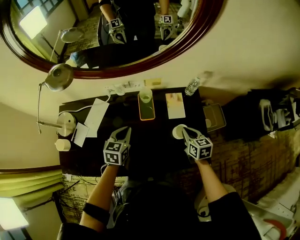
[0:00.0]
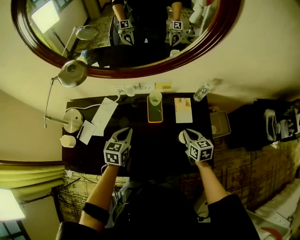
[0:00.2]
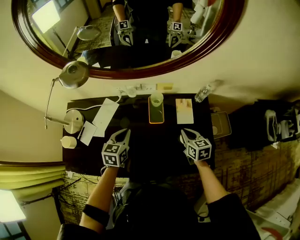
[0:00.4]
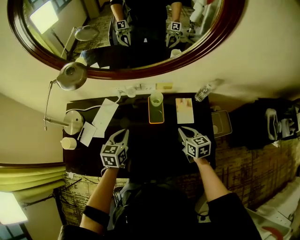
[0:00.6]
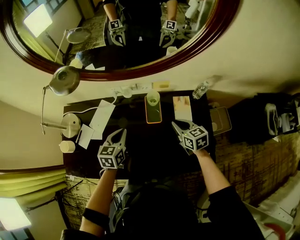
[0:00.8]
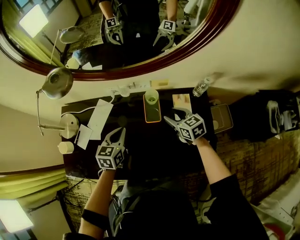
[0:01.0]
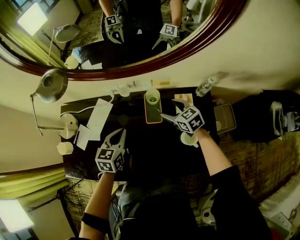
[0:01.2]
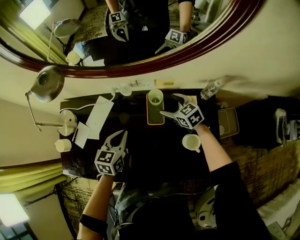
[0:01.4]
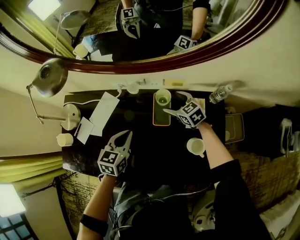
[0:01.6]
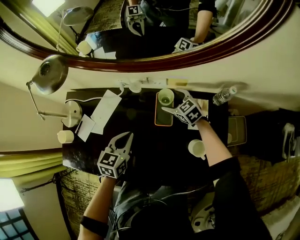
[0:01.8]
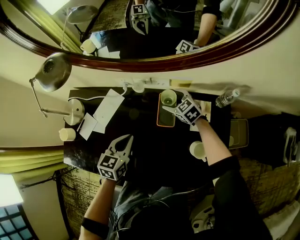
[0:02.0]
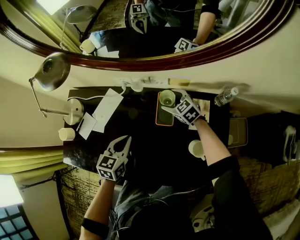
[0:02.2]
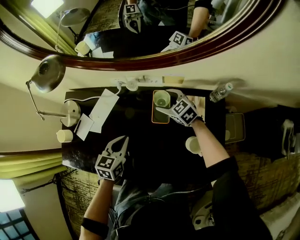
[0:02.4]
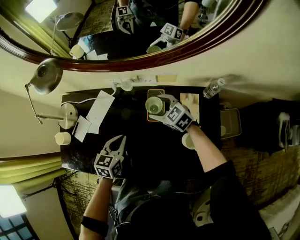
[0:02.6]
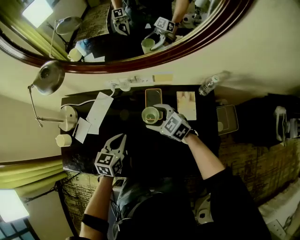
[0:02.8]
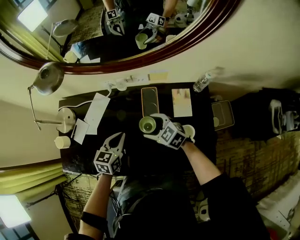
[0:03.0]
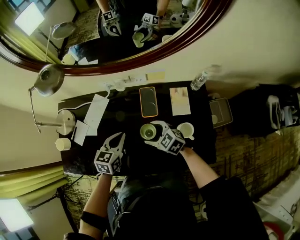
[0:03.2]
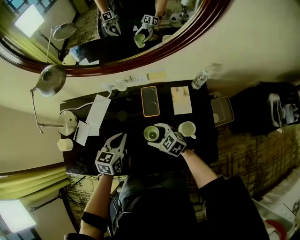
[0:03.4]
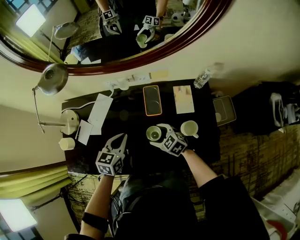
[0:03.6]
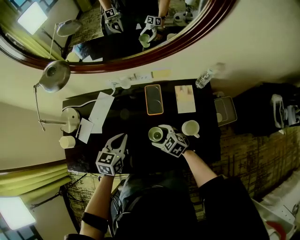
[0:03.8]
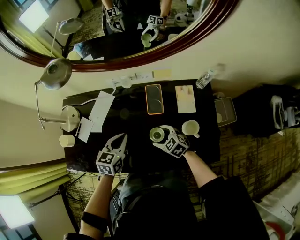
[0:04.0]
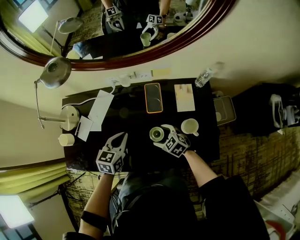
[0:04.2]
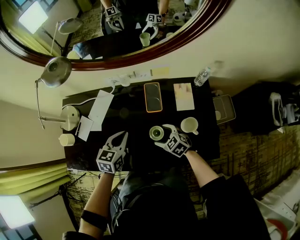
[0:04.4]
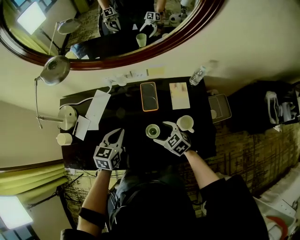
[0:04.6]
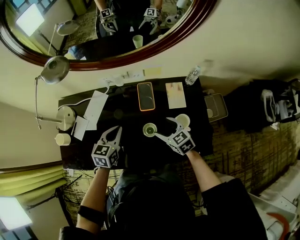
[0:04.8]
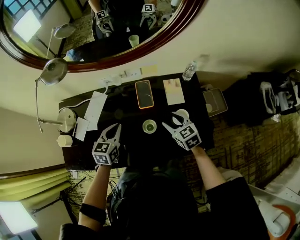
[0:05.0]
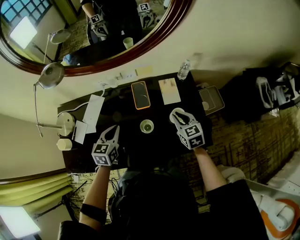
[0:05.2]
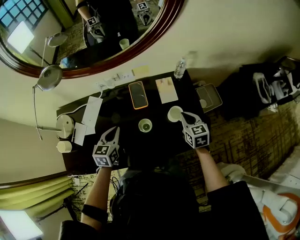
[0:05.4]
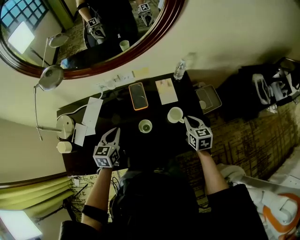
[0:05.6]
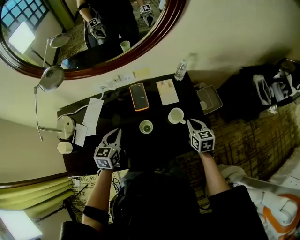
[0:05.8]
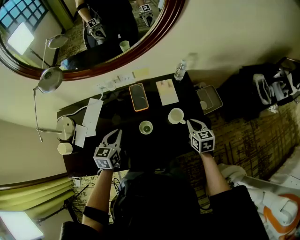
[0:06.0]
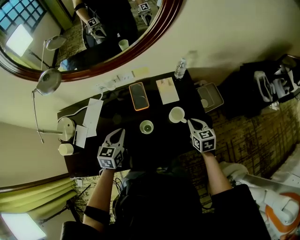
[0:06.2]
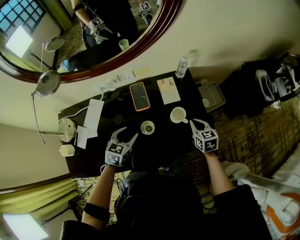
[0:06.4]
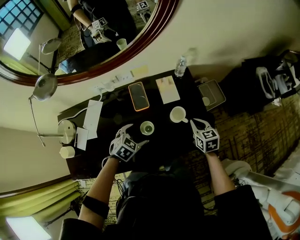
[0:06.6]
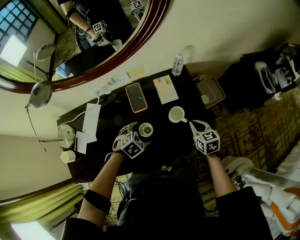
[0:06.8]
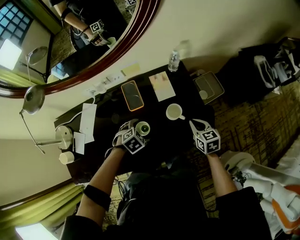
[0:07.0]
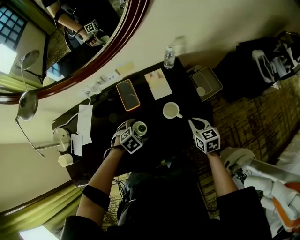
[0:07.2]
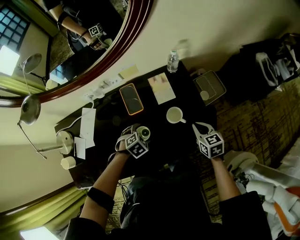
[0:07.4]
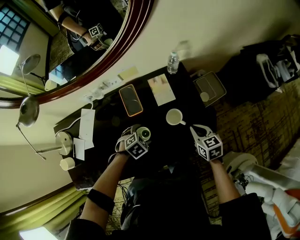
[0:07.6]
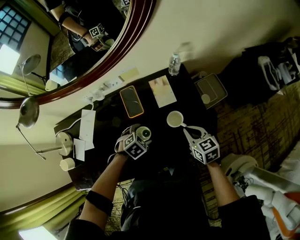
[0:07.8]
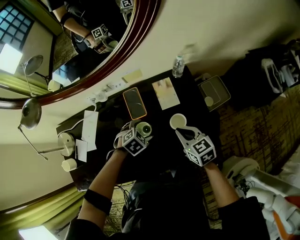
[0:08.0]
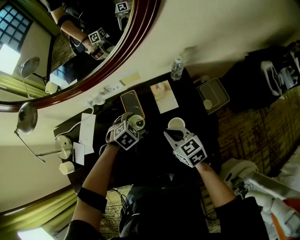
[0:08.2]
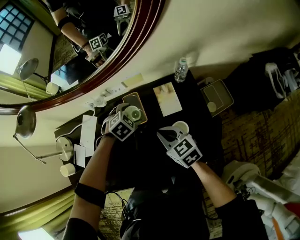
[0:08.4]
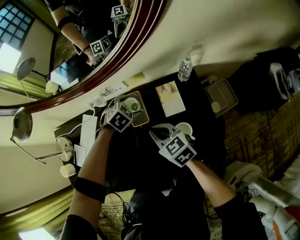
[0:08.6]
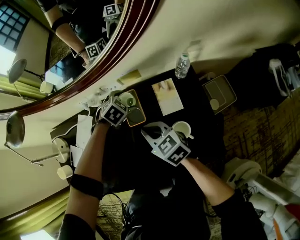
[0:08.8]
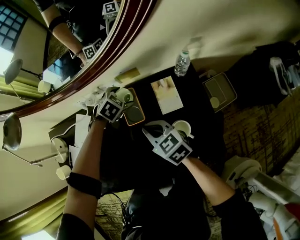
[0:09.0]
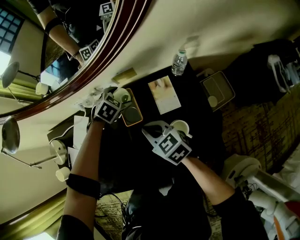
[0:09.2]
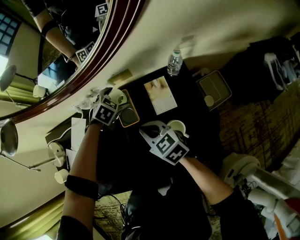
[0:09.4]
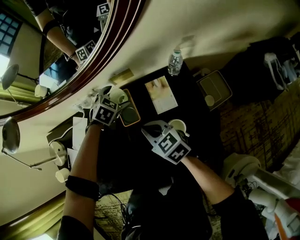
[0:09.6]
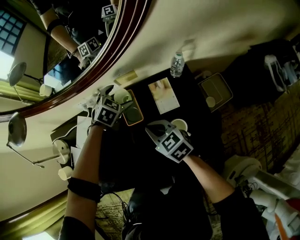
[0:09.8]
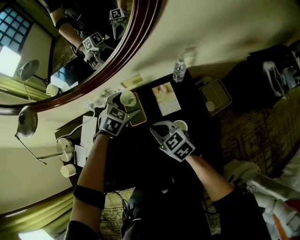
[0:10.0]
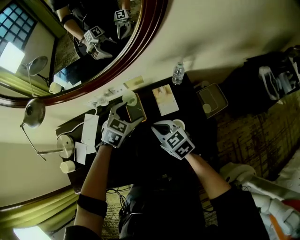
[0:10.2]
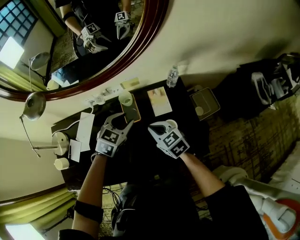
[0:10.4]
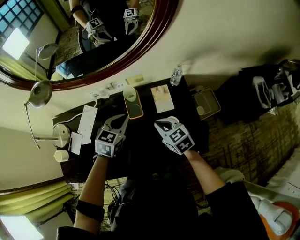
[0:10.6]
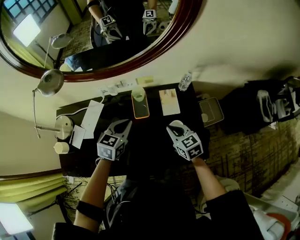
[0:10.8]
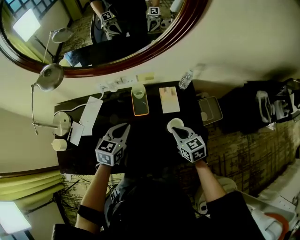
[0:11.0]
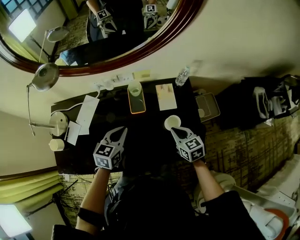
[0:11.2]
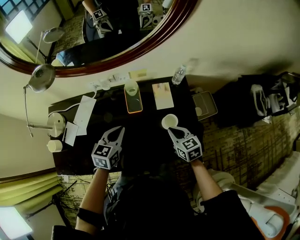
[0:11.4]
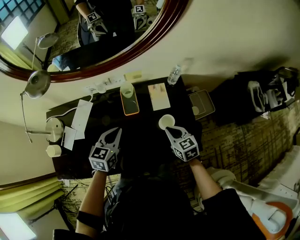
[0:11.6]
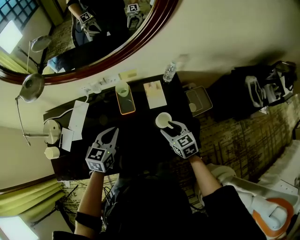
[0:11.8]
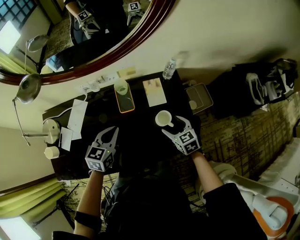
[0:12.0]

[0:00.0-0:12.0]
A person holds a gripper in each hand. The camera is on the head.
0:00.0 to 0:01.6: The left gripper shifts by about 5 cm. Meanwhile the right gripper moves forward and to the left, roughly 25 cm, rotates approximately 40 degrees, and opens up.
0:01.6 to 0:03.0: The right gripper heads backward and to the left, covering some 20 cm.
0:03.0 to 0:04.4: The right gripper shifts approximately 15 cm downward and backward.
0:04.4 to 0:06.0: The right gripper shifts by some 25 cm, changes its angle by about 50 degrees, and closes its fingers.
0:06.0 to 0:07.6: The left gripper is displaced downward and to the right by approximately 20 cm, angles its fingers downward, by about 40 degrees, and opens up.
0:07.6 to 0:09.0: The left gripper changes place by approximately 25 cm, while the right gripper changes place by roughly 25 cm, and turns by approximately 30 degrees.
0:09.0 to 0:10.4: The left gripper shifts roughly 25 cm upward and backward, swivels some 30 degrees, and closes, while the right gripper goes roughly 5 cm upward.
0:10.4 to 0:12.0: The left gripper moves backward and to the left, roughly 10 cm, and changes its angle by about 20 degrees. The right gripper moves to the right and downward, approximately 15 cm, and opens.

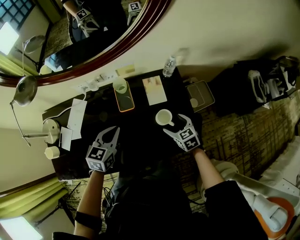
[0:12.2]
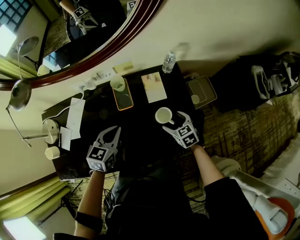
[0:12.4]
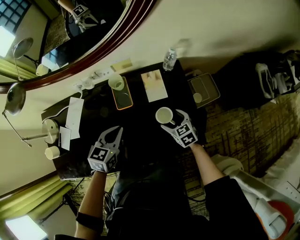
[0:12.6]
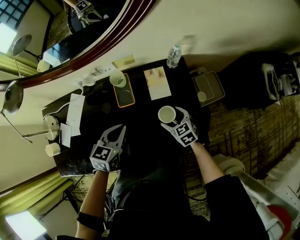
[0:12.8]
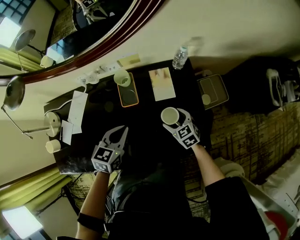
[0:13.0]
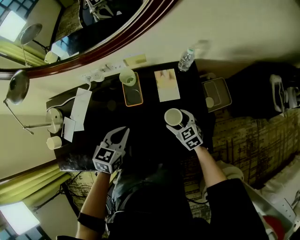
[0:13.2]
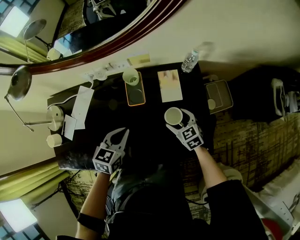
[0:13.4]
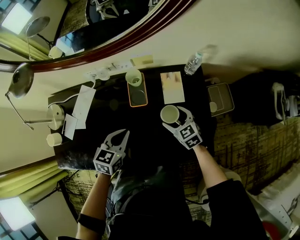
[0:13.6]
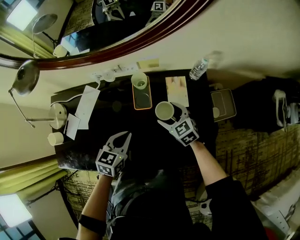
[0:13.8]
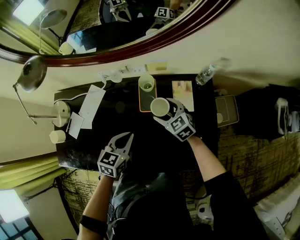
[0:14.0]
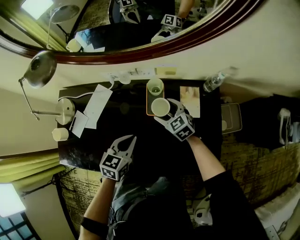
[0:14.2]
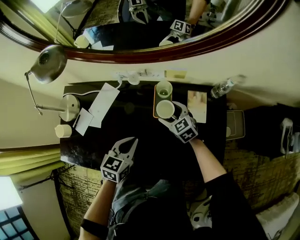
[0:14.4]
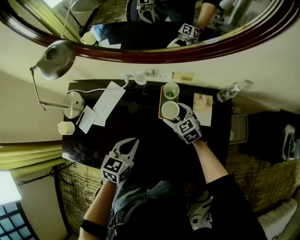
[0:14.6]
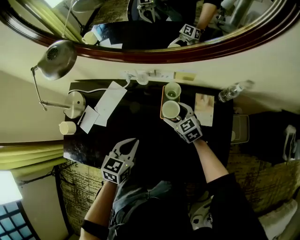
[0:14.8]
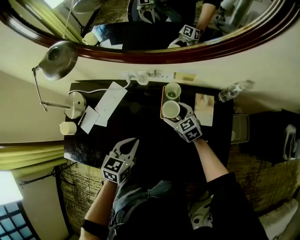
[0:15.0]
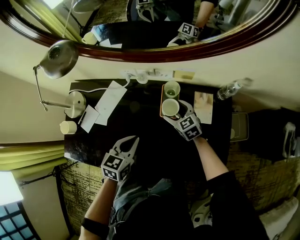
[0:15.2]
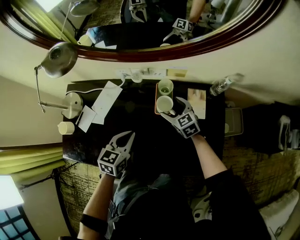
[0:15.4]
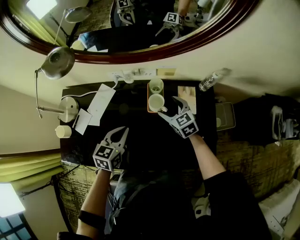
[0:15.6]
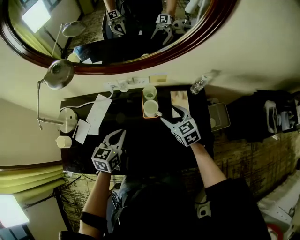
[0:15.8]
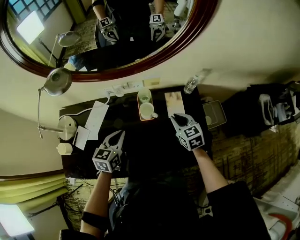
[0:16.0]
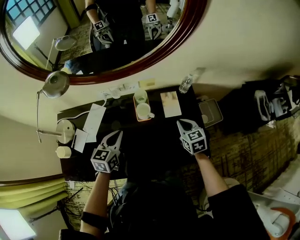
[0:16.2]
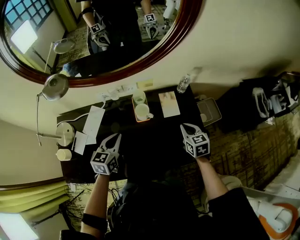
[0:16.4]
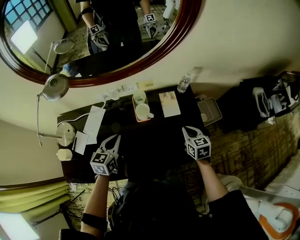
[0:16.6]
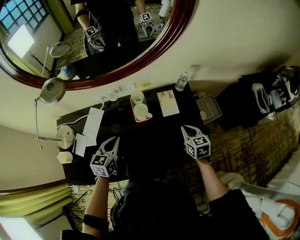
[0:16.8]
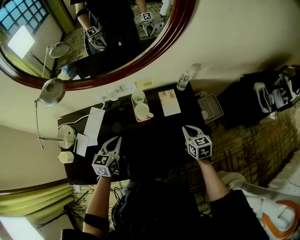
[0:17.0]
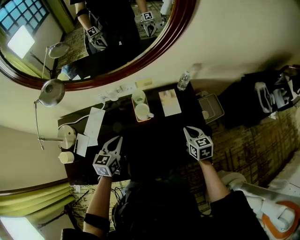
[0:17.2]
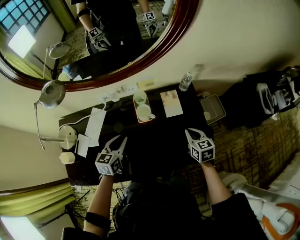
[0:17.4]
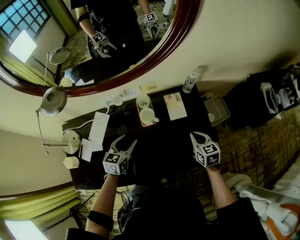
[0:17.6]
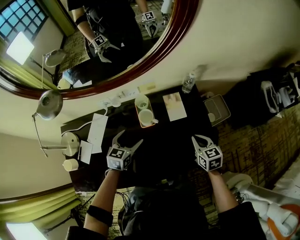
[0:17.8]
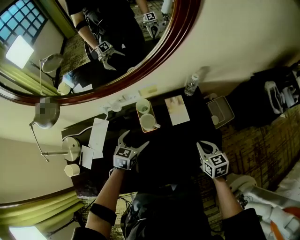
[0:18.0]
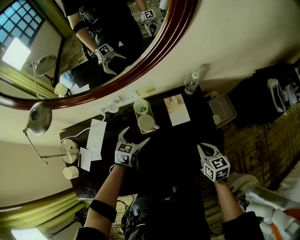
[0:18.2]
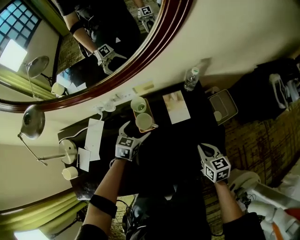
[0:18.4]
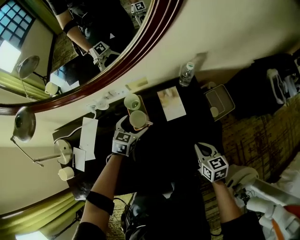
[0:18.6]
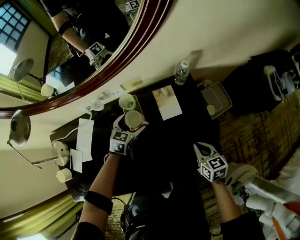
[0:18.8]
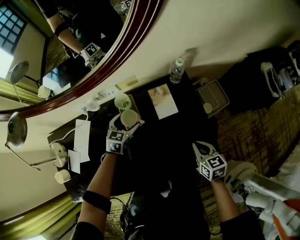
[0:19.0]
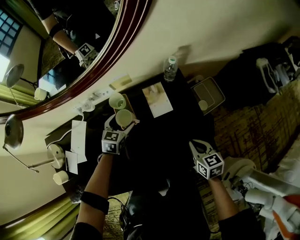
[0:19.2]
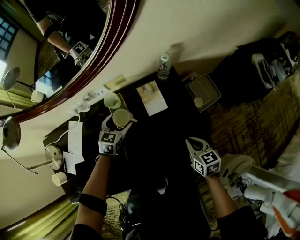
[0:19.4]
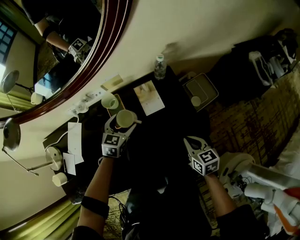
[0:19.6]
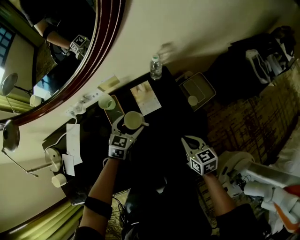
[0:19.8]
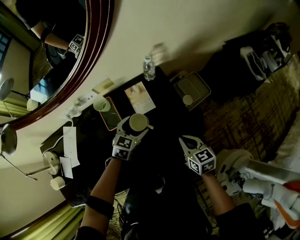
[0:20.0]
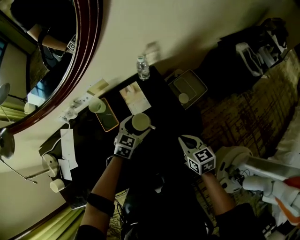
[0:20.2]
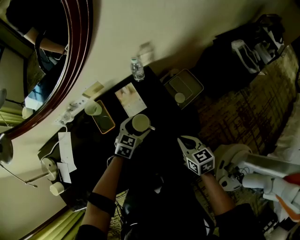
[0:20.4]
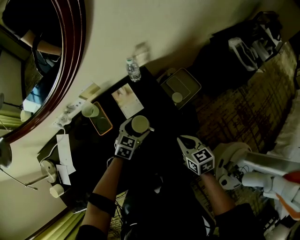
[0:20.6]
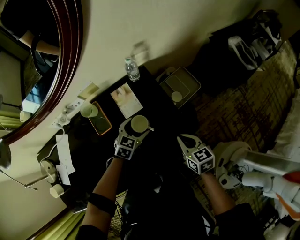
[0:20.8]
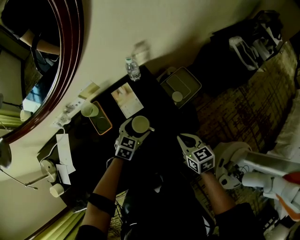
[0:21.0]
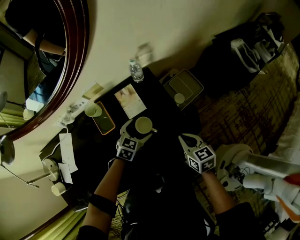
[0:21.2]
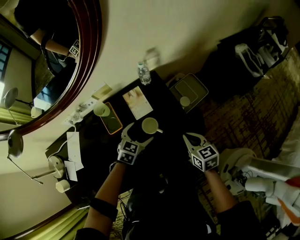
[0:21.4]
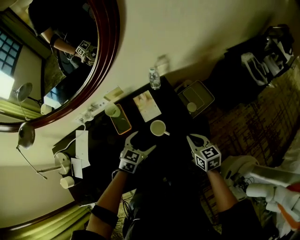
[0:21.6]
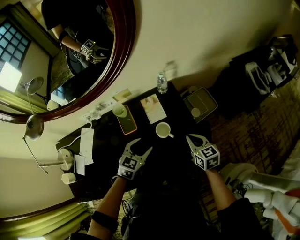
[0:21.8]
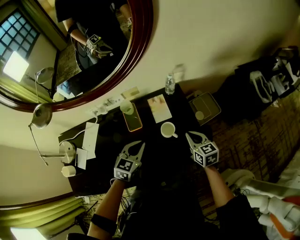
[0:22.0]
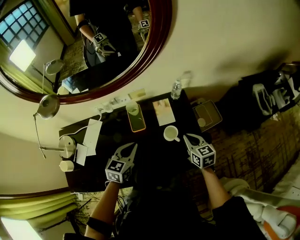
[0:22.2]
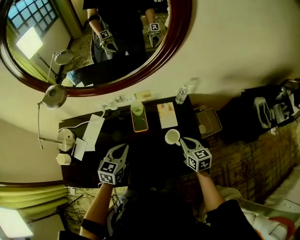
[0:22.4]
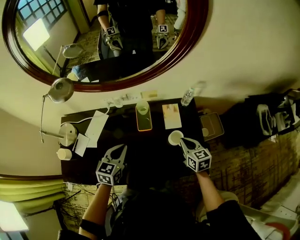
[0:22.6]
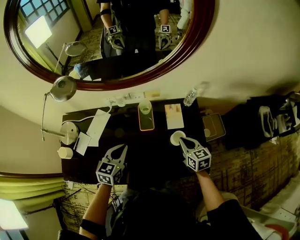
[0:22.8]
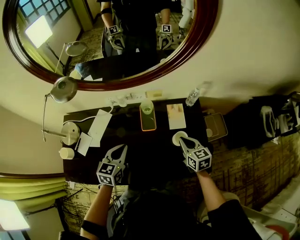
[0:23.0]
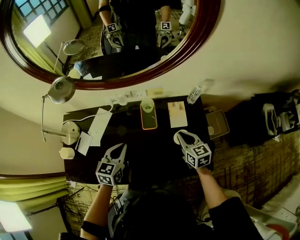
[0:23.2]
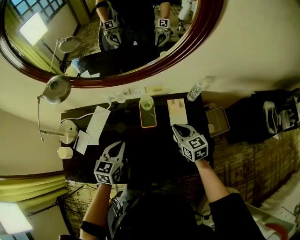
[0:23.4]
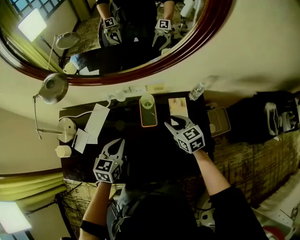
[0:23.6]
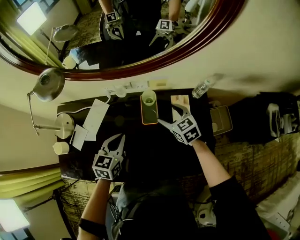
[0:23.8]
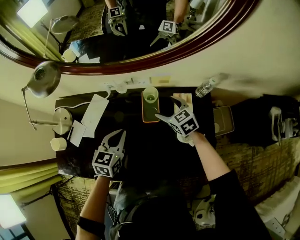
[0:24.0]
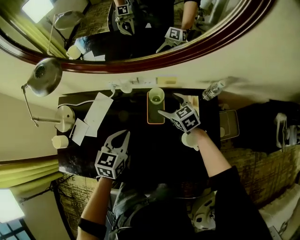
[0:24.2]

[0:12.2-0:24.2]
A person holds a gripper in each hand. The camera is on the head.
0:12.2 to 0:13.8: The left gripper shifts approximately 10 cm downward, while the right gripper goes about 15 cm to the left and forward, and swivels approximately 20 degrees.
0:13.8 to 0:15.2: The left gripper heads to the left, covering roughly 5 cm. The right gripper moves to the left and forward, approximately 10 cm.
0:15.2 to 0:16.6: The left gripper heads upward, covering about 5 cm, while the right gripper is displaced to the right, backward and upward by about 30 cm, changes its angle by some 40 degrees, and closes.
0:16.6 to 0:18.2: The left gripper shifts about 20 cm downward, forward and to the right, and opens.
0:18.2 to 0:19.8: The left gripper travels to the right by about 15 cm. The right gripper travels to the right by some 5 cm.
0:19.8 to 0:21.2: The right gripper heads to the right, covering about 5 cm. The left gripper goes some 10 cm to the right and downward.
0:21.2 to 0:22.6: The right gripper moves roughly 15 cm; the left gripper ends up approximately 35 cm from where it was, swivels about 40 degrees, and closes.
0:22.6 to 0:24.2: The right gripper heads forward, to the left and downward, covering about 25 cm, swivels about 30 degrees, and opens up. The left gripper heads forward and downward, covering some 10 cm.
